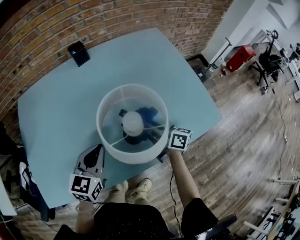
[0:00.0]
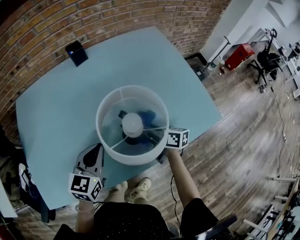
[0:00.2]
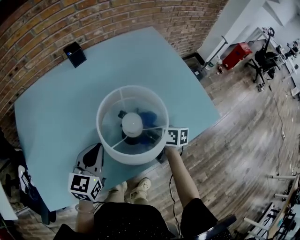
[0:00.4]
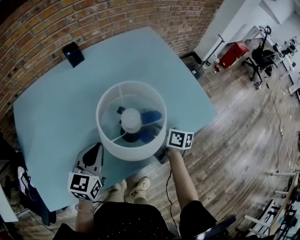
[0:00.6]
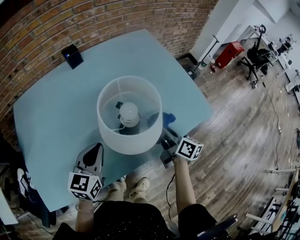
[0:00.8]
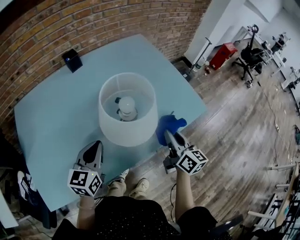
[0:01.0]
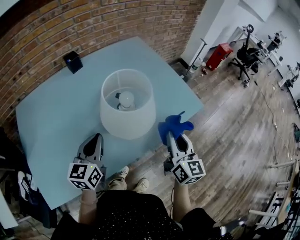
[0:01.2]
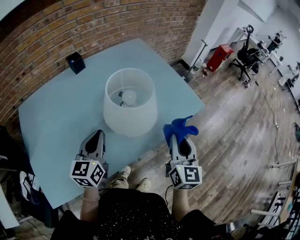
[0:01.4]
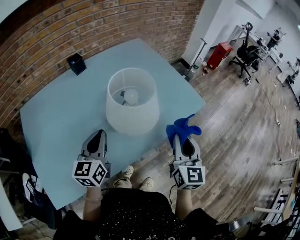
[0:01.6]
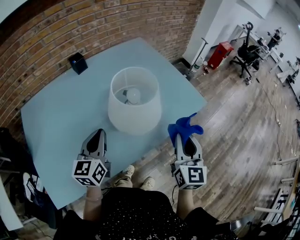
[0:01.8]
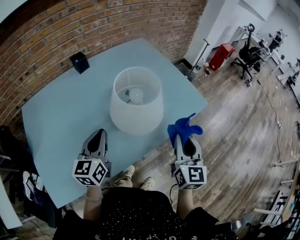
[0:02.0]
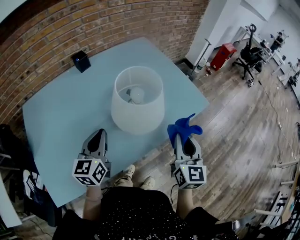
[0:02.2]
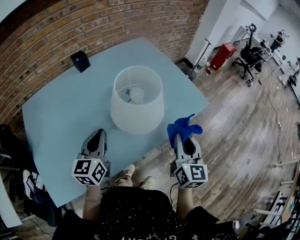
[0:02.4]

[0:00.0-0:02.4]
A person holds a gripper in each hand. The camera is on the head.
0:00.0 to 0:01.2: The left gripper ends up some 5 cm from where it was; the right gripper heads backward, upward and to the right, covering approximately 25 cm, and swivels about 60 degrees.
0:01.2 to 0:02.4: The grippers move only a little.

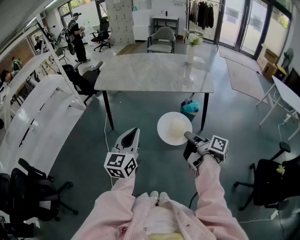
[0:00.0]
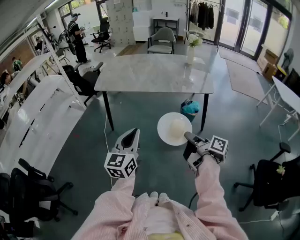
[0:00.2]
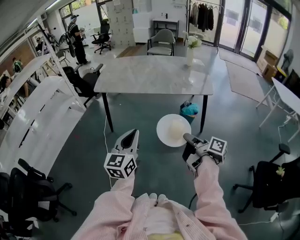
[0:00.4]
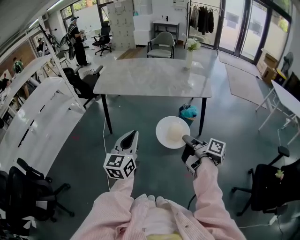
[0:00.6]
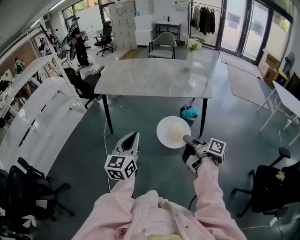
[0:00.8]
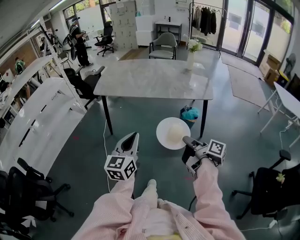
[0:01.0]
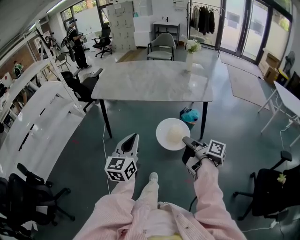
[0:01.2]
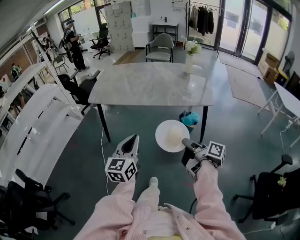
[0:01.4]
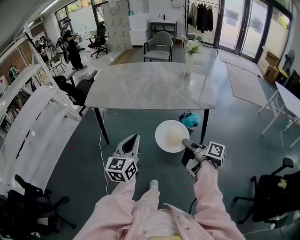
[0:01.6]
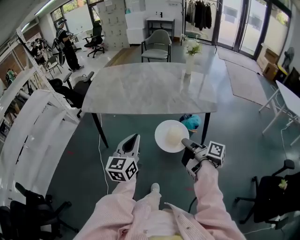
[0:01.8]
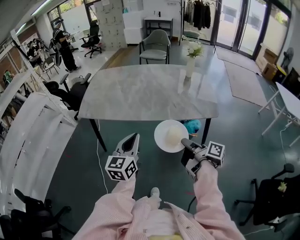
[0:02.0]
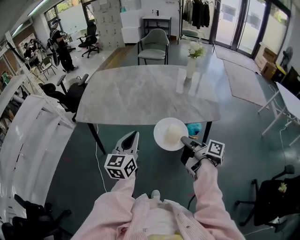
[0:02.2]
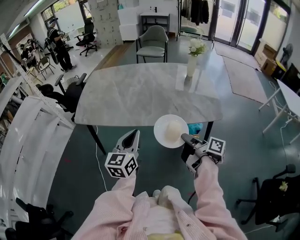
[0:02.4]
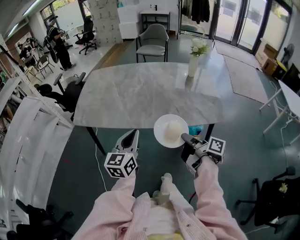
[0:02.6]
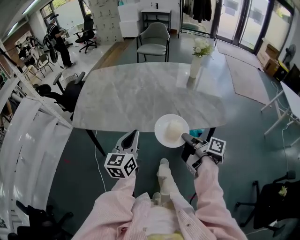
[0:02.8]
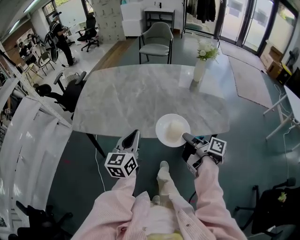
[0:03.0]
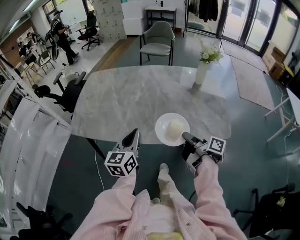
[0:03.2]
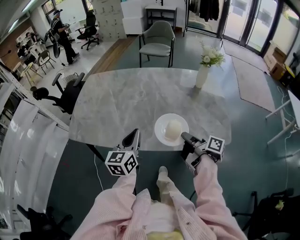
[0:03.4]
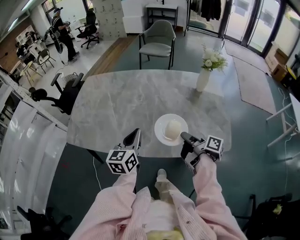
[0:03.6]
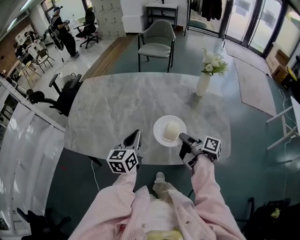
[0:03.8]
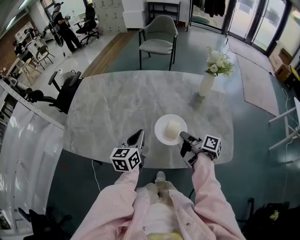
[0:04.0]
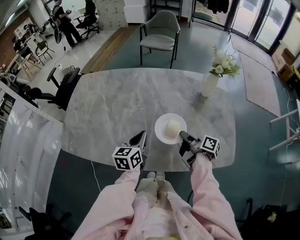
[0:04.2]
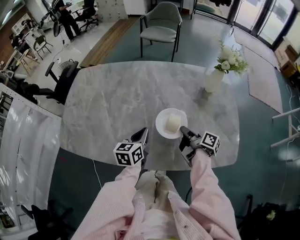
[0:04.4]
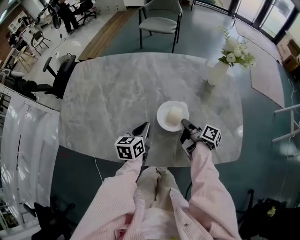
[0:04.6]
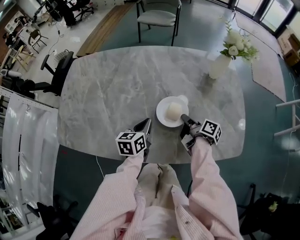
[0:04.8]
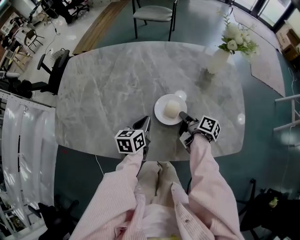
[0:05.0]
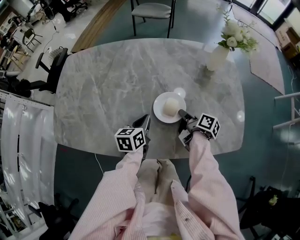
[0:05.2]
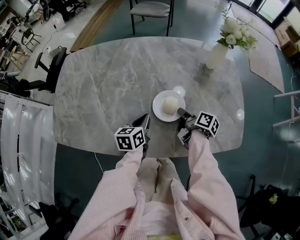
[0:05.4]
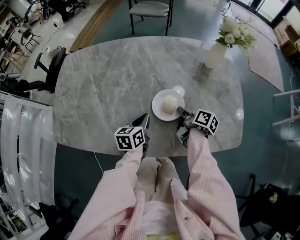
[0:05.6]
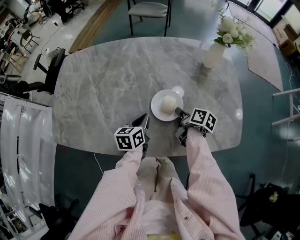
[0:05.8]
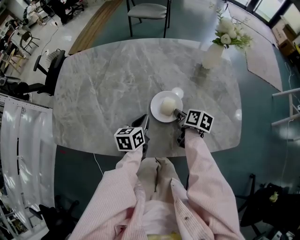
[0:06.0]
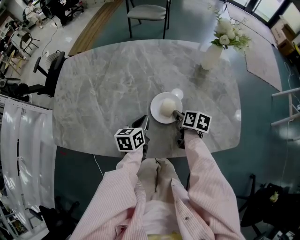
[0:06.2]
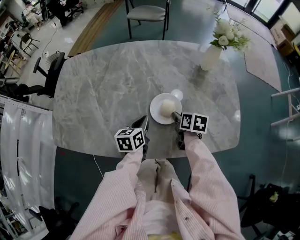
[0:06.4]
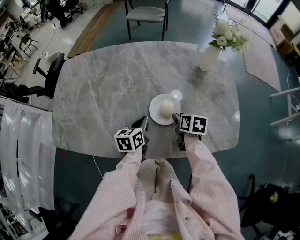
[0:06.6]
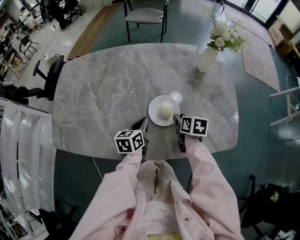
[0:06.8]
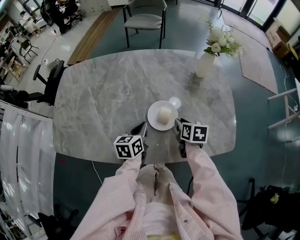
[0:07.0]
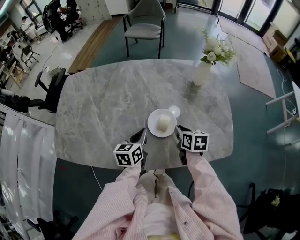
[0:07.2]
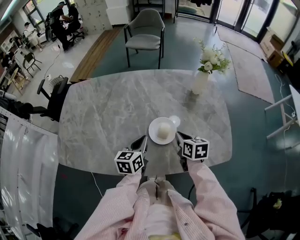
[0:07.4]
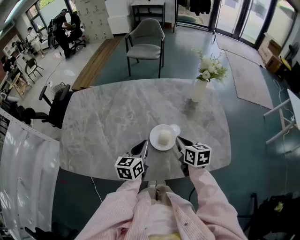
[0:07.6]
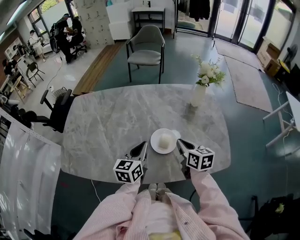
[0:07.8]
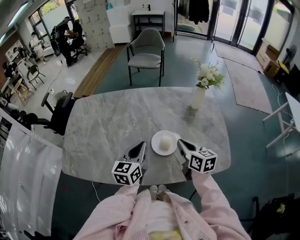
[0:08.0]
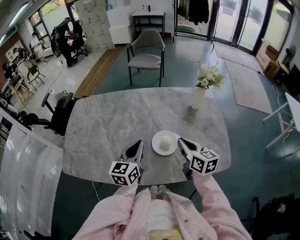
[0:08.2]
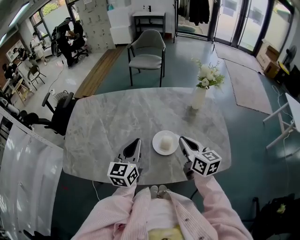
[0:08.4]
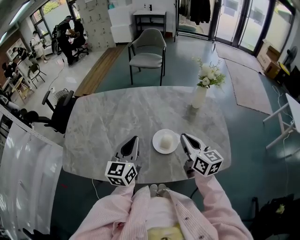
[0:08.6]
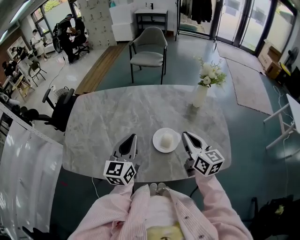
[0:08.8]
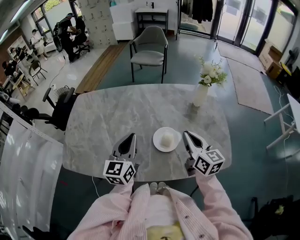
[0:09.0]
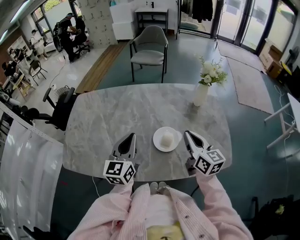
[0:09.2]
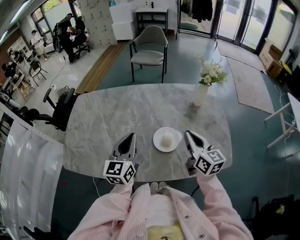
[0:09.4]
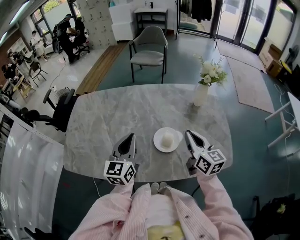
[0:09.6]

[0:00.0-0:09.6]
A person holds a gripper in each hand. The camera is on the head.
0:00.0 to 0:01.6: The right gripper is displaced forward by approximately 15 cm. The left gripper heads forward and to the right, covering roughly 15 cm.
0:01.6 to 0:03.2: Both grippers move forward, about 35 cm.
0:03.2 to 0:04.8: The two grippers go some 30 cm forward and downward. The left gripper changes its angle by approximately 30 degrees.
0:04.8 to 0:06.4: The right gripper turns by roughly 50 degrees.
0:06.4 to 0:08.0: Both grippers move upward, some 15 cm. The left gripper swivels roughly 30 degrees; the right gripper rotates roughly 30 degrees, and closes its fingers.
0:08.0 to 0:09.6: The grippers both shift upward by roughly 5 cm.

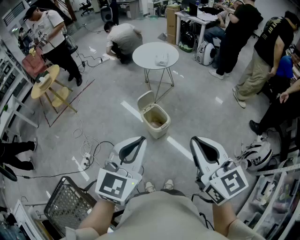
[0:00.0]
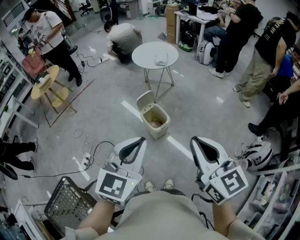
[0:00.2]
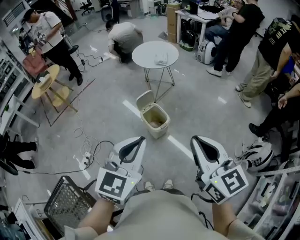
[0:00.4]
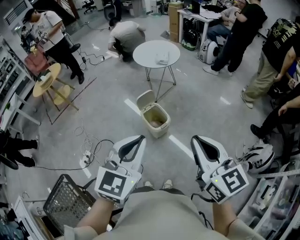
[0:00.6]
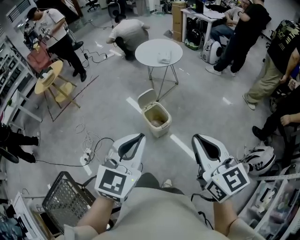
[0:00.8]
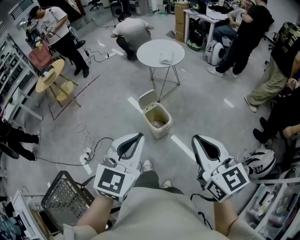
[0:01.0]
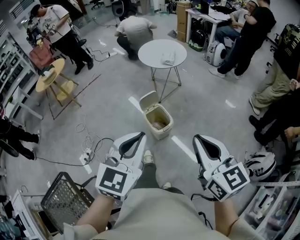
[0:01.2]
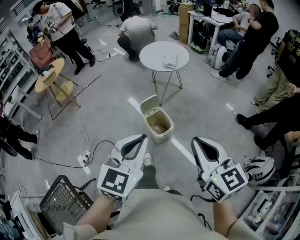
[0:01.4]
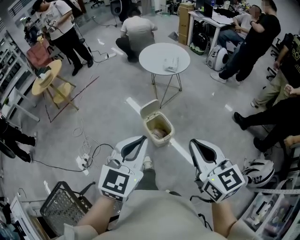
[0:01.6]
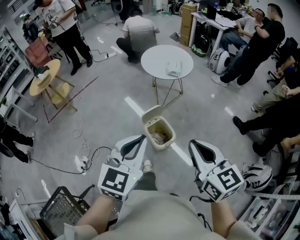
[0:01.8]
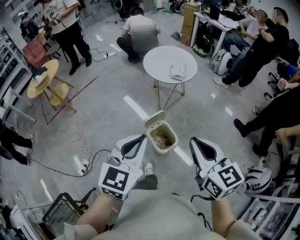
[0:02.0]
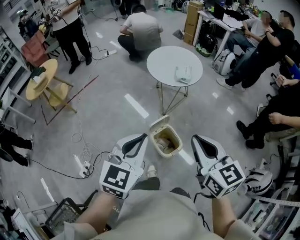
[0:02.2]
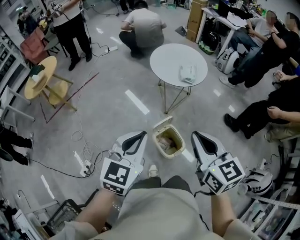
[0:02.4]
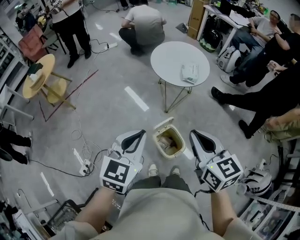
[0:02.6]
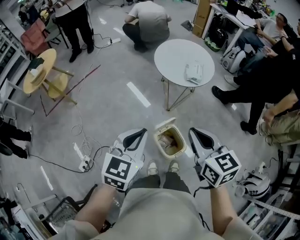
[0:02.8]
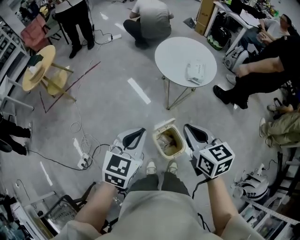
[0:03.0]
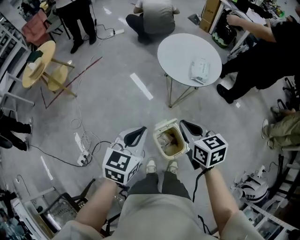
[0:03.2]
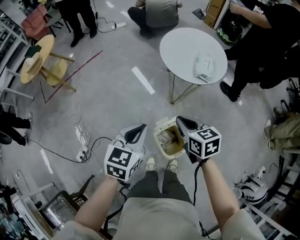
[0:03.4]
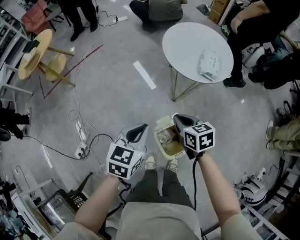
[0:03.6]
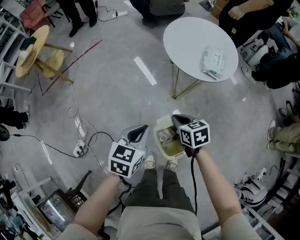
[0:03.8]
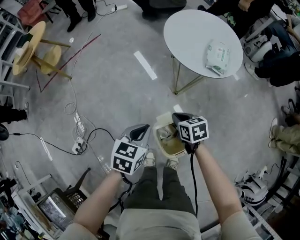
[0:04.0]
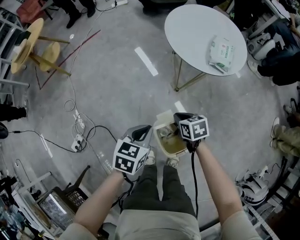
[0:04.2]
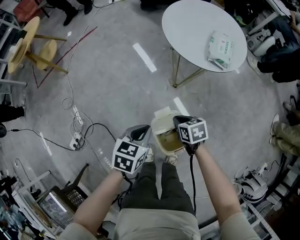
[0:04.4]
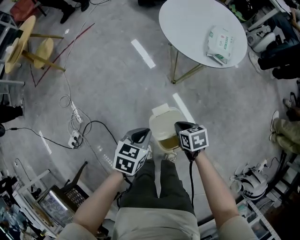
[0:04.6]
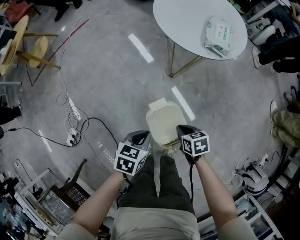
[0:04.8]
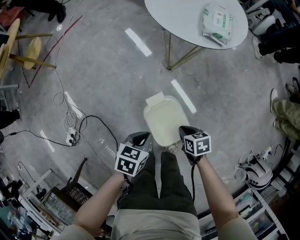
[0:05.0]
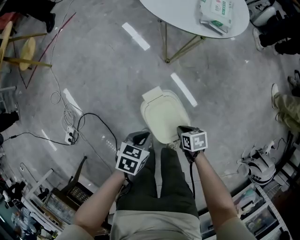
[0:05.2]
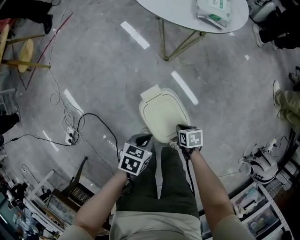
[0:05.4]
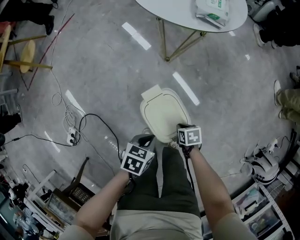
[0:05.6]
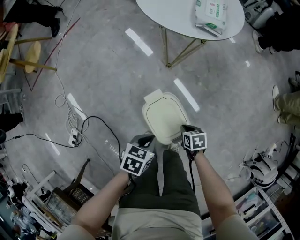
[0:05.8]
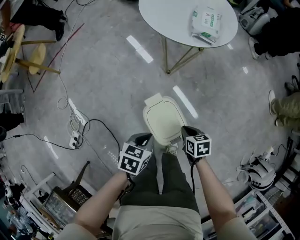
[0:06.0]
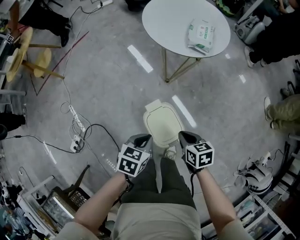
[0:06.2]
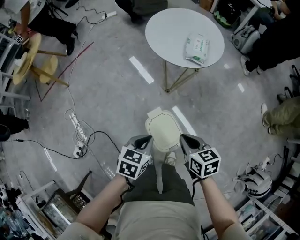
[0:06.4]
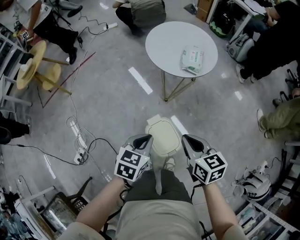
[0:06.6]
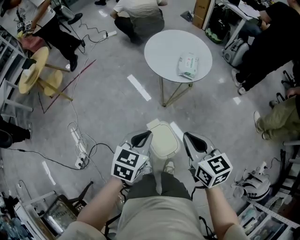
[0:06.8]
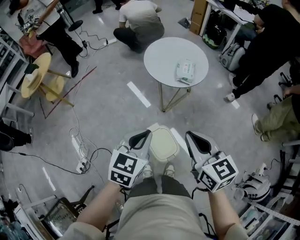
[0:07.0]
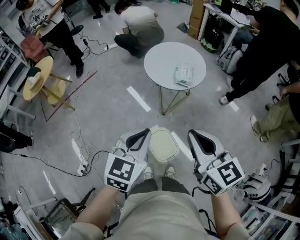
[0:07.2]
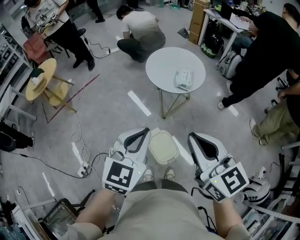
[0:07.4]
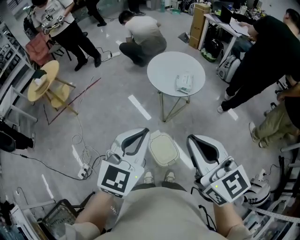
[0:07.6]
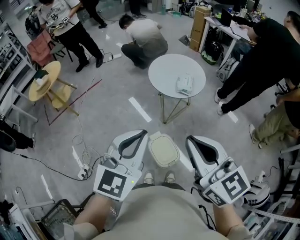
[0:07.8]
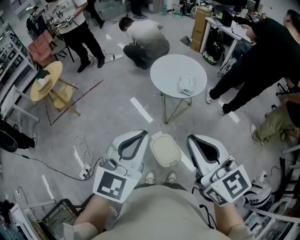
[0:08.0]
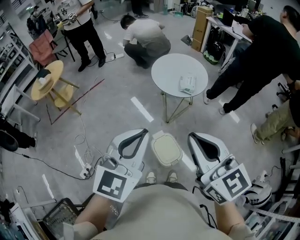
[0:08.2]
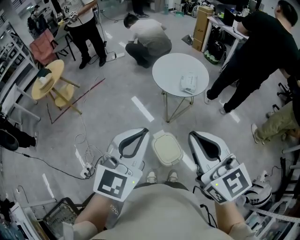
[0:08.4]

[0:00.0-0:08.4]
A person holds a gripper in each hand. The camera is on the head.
0:00.0 to 0:01.4: The left gripper is displaced forward by some 10 cm, while the right gripper travels forward and downward by about 10 cm.
0:01.4 to 0:02.8: Both grippers move forward and to the left, approximately 40 cm.
0:02.8 to 0:04.2: Both grippers move downward, some 35 cm. The left gripper rotates roughly 30 degrees, while the right gripper angles its fingers downward, by some 30 degrees.
0:04.2 to 0:05.6: Both grippers move downward, about 20 cm. The right gripper turns by about 30 degrees; the left gripper swivels roughly 20 degrees.
0:05.6 to 0:07.0: The two grippers go some 50 cm upward. The right gripper points its fingers about 50 degrees further upward. The left gripper rotates some 40 degrees.
0:07.0 to 0:08.4: The two grippers go some 20 cm upward and backward. The left gripper rotates about 20 degrees.

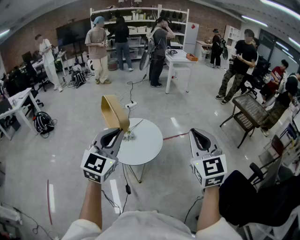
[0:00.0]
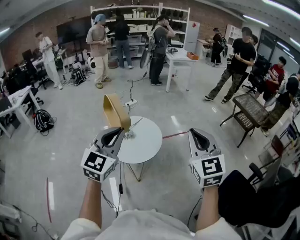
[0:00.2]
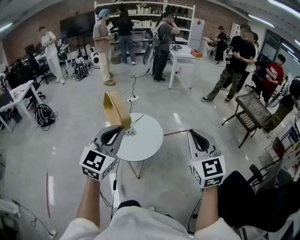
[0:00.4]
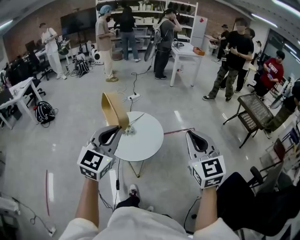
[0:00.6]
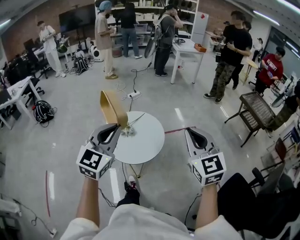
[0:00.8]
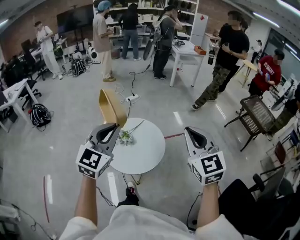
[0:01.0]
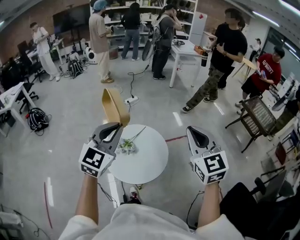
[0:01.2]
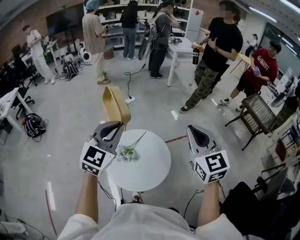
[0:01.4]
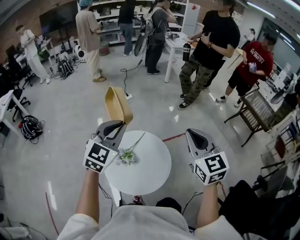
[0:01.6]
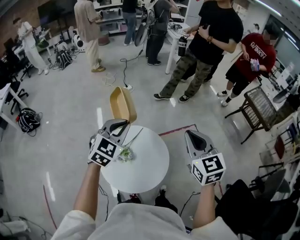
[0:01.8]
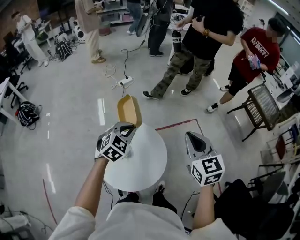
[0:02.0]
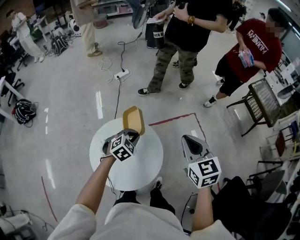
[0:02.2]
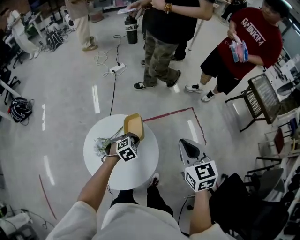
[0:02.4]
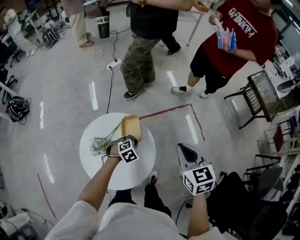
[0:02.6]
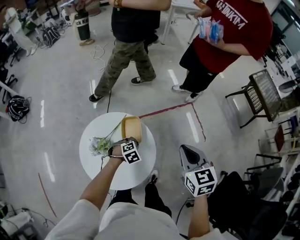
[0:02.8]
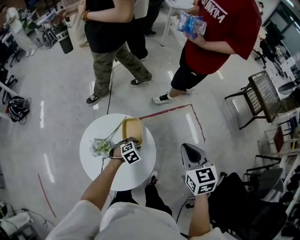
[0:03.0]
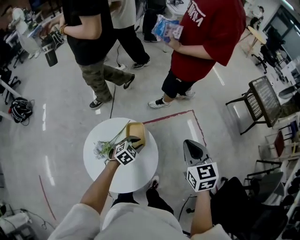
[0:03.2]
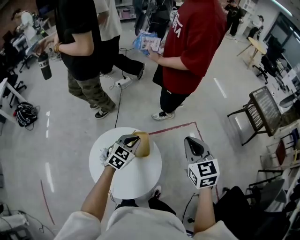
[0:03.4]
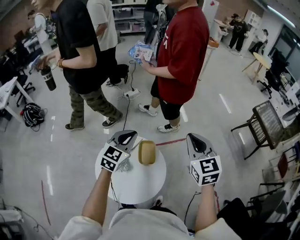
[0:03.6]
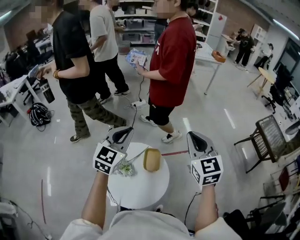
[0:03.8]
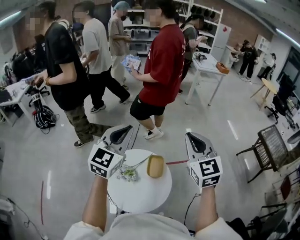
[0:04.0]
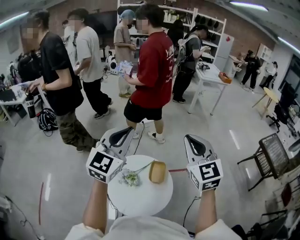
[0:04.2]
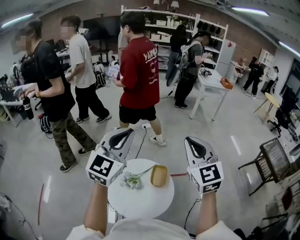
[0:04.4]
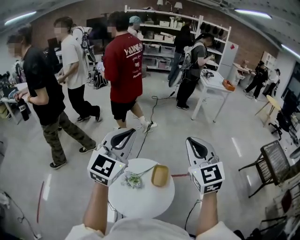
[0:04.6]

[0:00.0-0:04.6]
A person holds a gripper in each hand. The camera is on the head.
0:00.0 to 0:01.6: Both grippers move forward, approximately 40 cm.
0:01.6 to 0:03.0: The left gripper is displaced downward and to the right by approximately 50 cm, points its fingers roughly 50 degrees further downward, and opens its fingers; the right gripper moves downward, forward and to the right, roughly 30 cm, and turns by approximately 30 degrees.
0:03.0 to 0:04.6: The left gripper goes roughly 60 cm upward, tilts its fingers roughly 70 degrees upward, and closes up; the right gripper moves upward, approximately 30 cm, and changes its angle by approximately 40 degrees.
